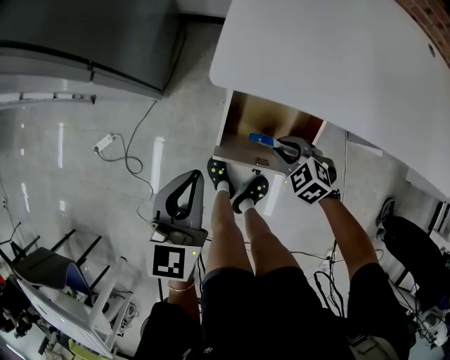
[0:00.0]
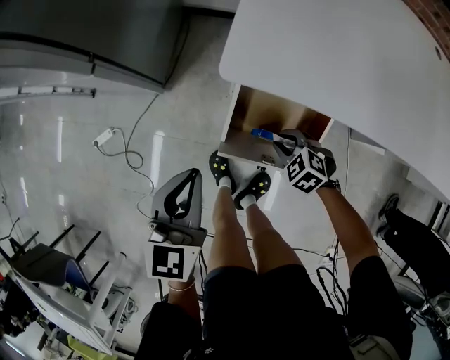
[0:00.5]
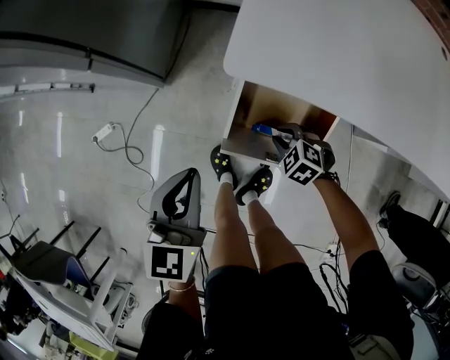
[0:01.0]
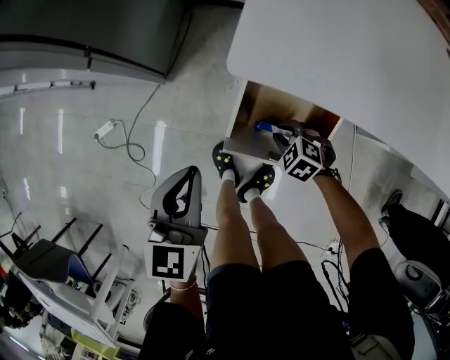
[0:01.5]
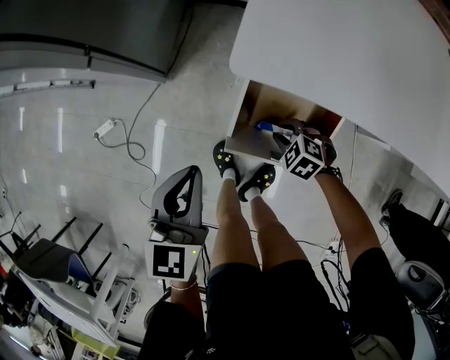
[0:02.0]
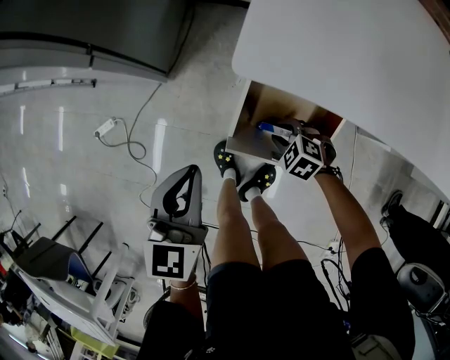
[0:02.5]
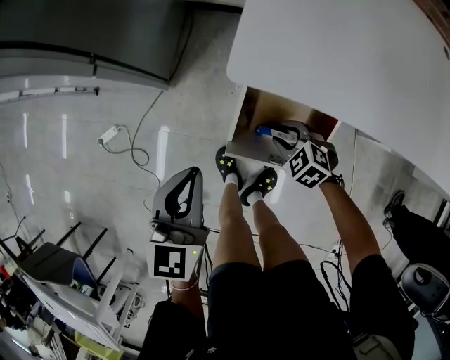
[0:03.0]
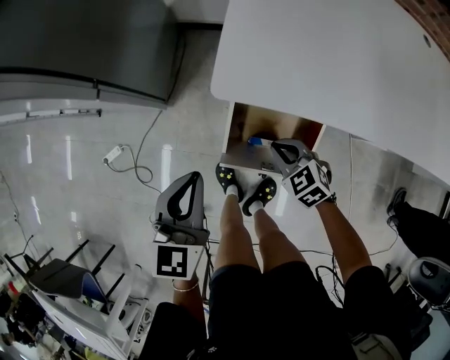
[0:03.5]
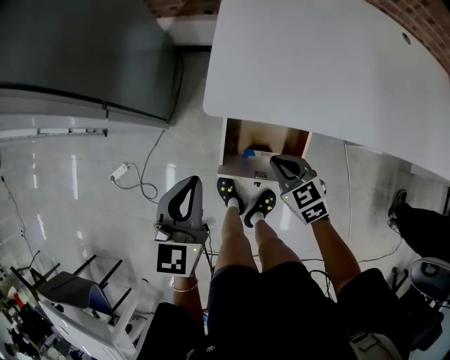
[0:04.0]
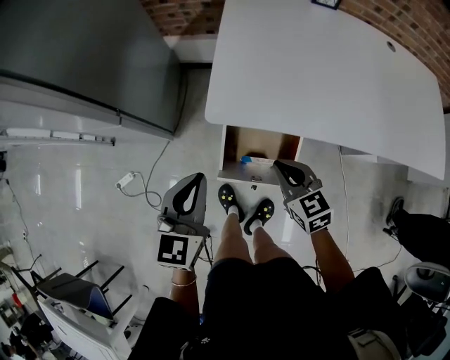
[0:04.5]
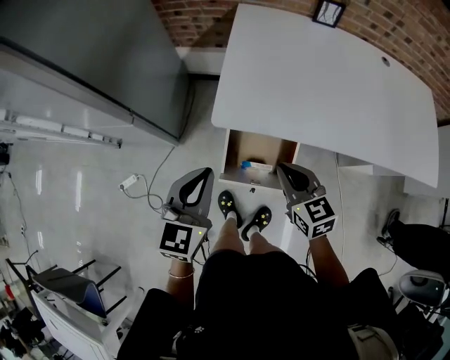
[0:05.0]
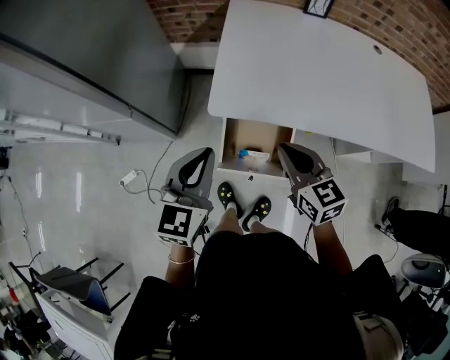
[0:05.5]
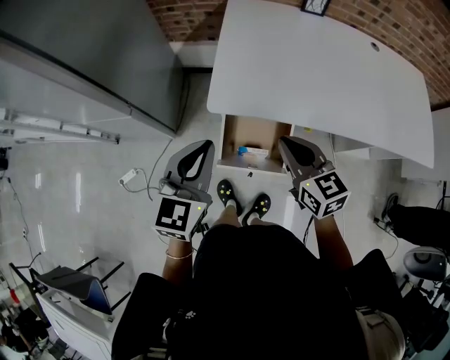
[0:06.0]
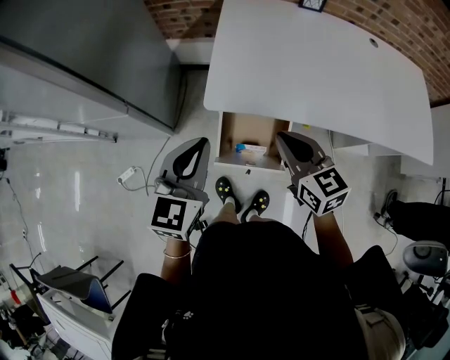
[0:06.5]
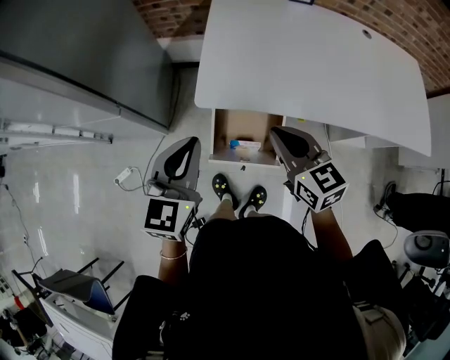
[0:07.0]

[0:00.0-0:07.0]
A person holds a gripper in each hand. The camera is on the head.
0:00.0 to 0:02.0: The right gripper goes approximately 10 cm downward.
0:02.0 to 0:03.5: The right gripper travels upward by roughly 10 cm, swivels approximately 30 degrees, and closes up; the left gripper shifts by approximately 5 cm.
0:03.5 to 0:05.0: The right gripper is displaced upward by approximately 25 cm, and changes its angle by some 30 degrees. Meanwhile the left gripper moves upward, about 15 cm.
0:05.0 to 0:07.0: The right gripper shifts some 10 cm upward.

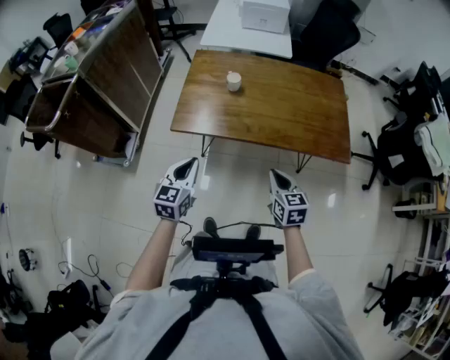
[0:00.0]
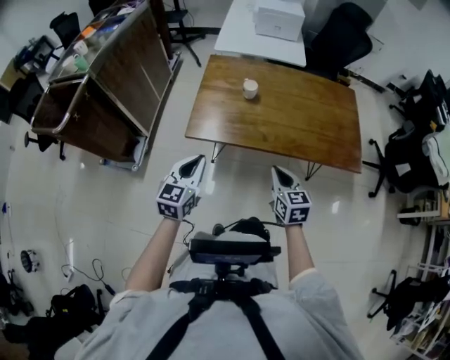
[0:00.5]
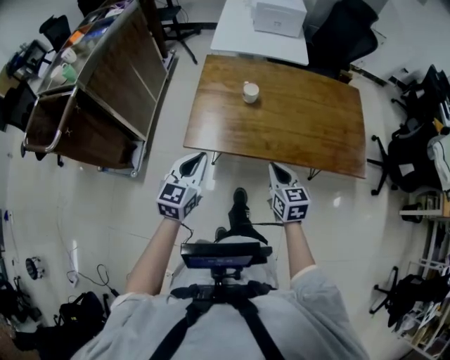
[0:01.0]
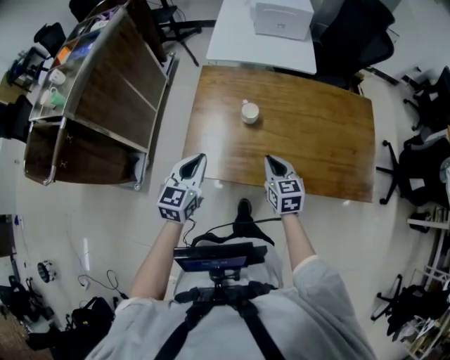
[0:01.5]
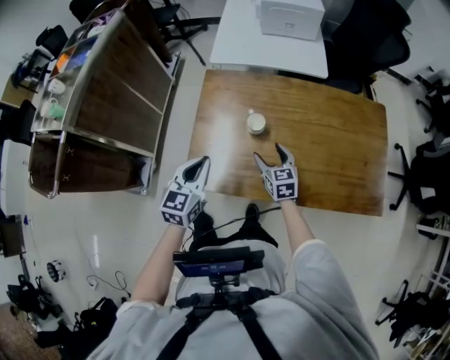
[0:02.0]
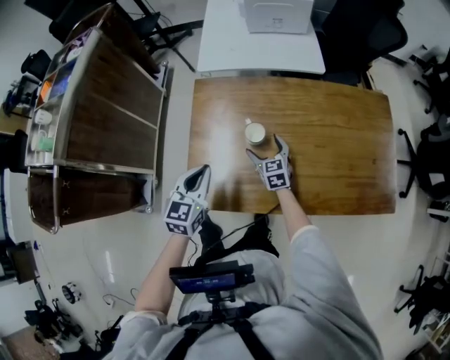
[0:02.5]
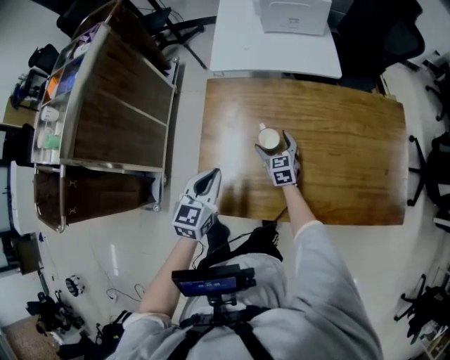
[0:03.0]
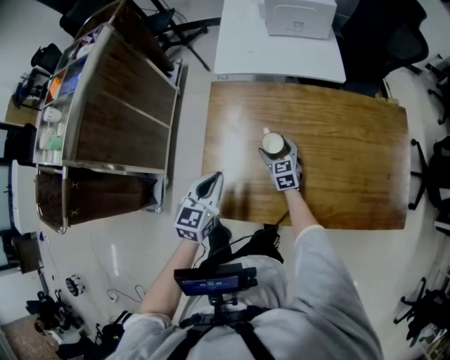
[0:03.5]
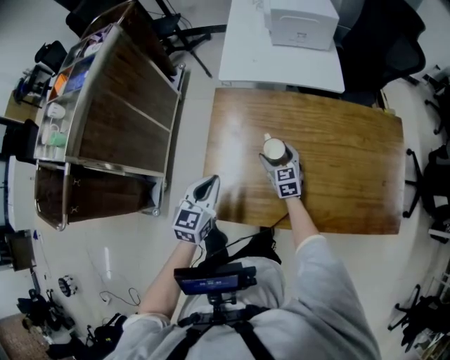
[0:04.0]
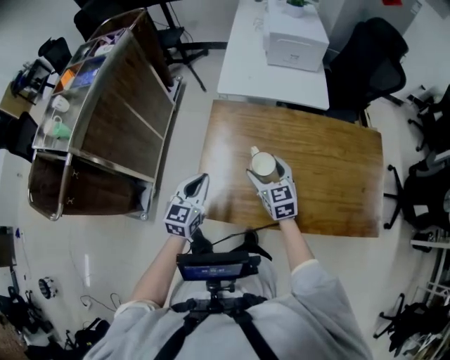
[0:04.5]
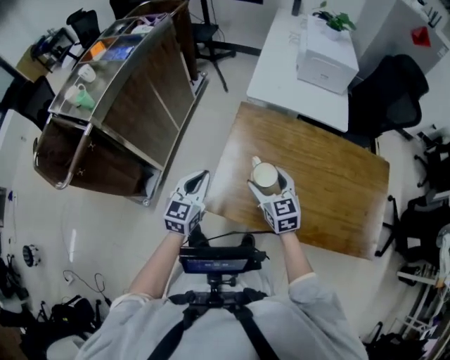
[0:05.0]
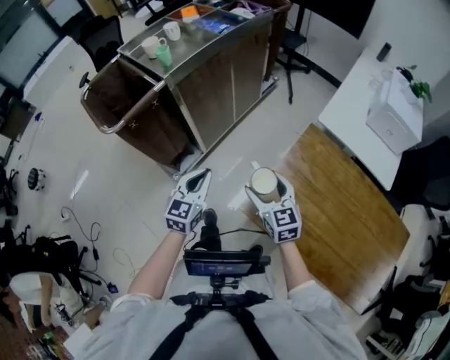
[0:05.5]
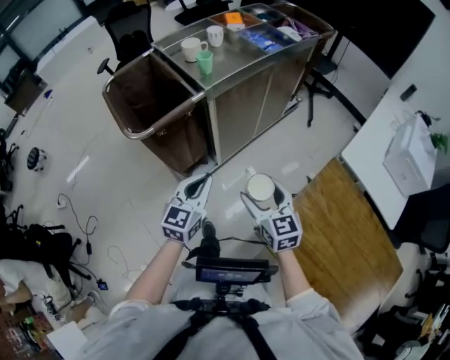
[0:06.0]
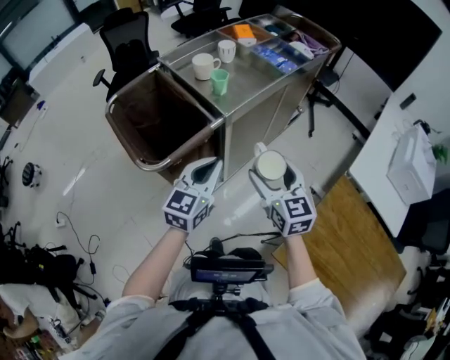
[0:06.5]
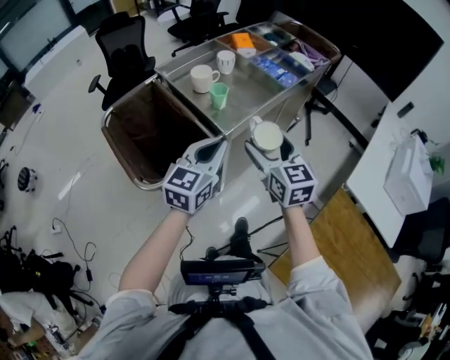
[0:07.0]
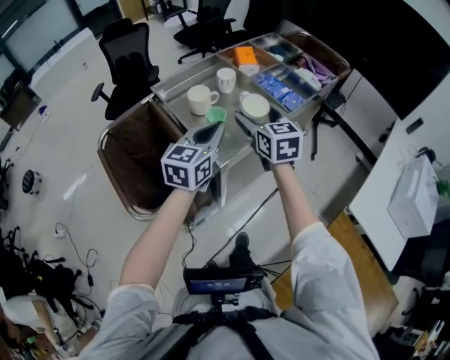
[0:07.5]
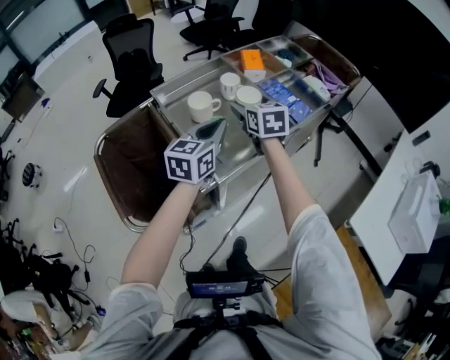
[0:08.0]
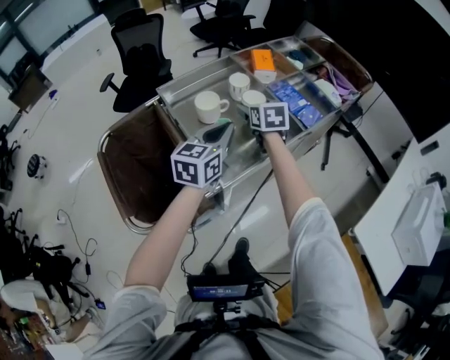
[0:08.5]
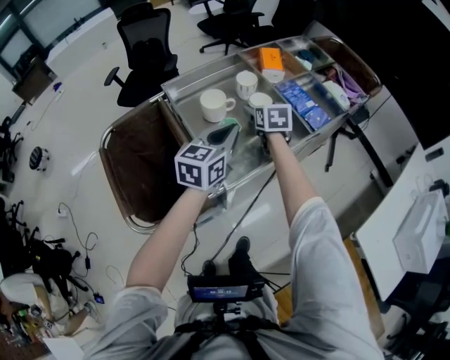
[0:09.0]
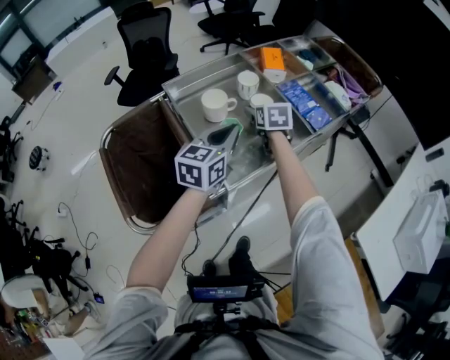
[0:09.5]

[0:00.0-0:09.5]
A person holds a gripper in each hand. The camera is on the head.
0:00.0 to 0:02.0: Both grippers move forward, about 35 cm. The right gripper opens up.
0:02.0 to 0:04.0: The right gripper moves forward and downward, about 15 cm. The left gripper goes approximately 5 cm forward.
0:04.0 to 0:05.5: The left gripper ends up roughly 30 cm from where it was, and rotates about 30 degrees. The right gripper moves roughly 40 cm, and rotates approximately 40 degrees.
0:05.5 to 0:07.5: Both grippers are carried forward and to the left, about 50 cm.
0:07.5 to 0:09.5: The left gripper travels forward by some 10 cm. Meanwhile the right gripper shifts some 20 cm forward and downward, and turns by some 20 degrees.

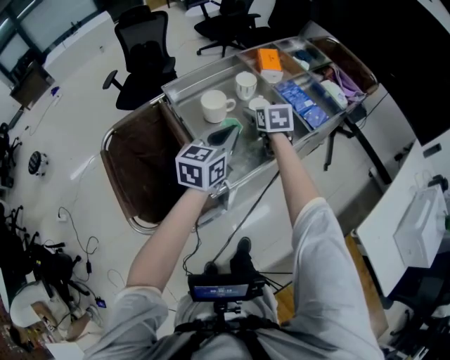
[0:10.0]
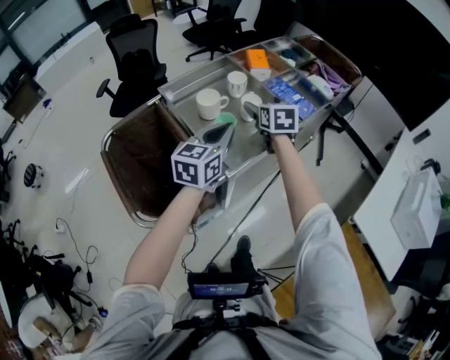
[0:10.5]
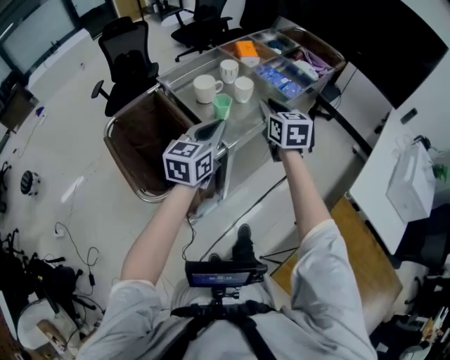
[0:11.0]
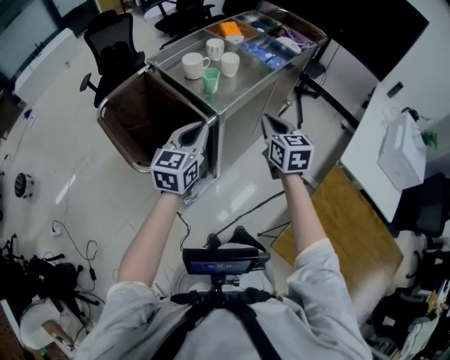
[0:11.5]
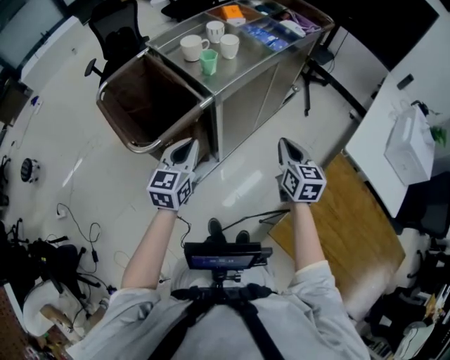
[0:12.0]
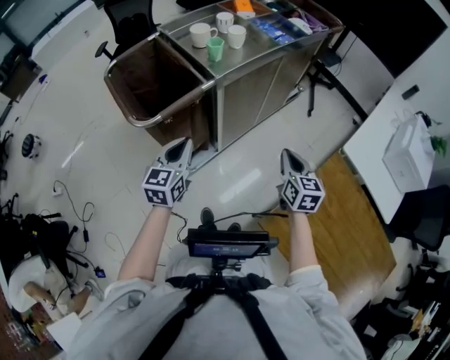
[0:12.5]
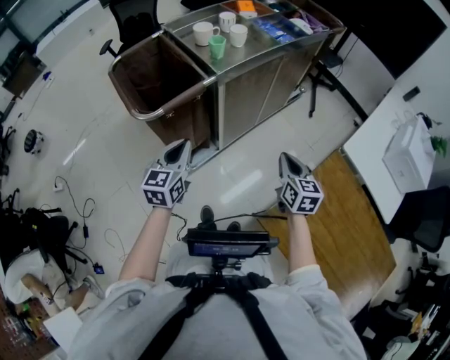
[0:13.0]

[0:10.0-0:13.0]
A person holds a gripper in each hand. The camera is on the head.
0:10.0 to 0:11.5: Both grippers move backward, approximately 30 cm. The right gripper closes its fingers.
0:11.5 to 0:13.0: The right gripper goes roughly 25 cm backward, to the right and downward; the left gripper heads backward and downward, covering some 20 cm.

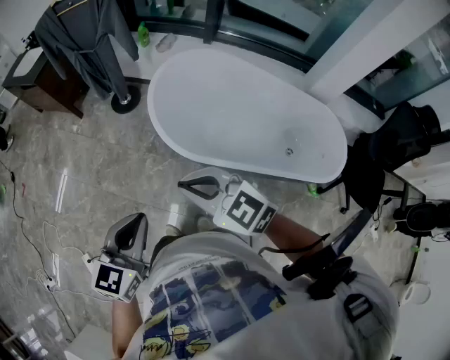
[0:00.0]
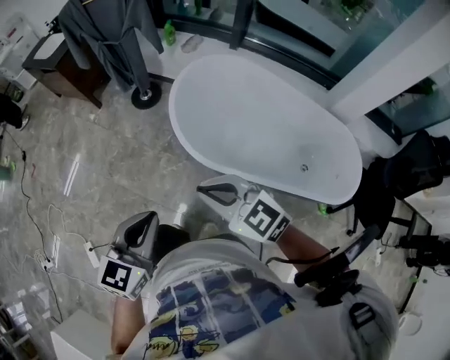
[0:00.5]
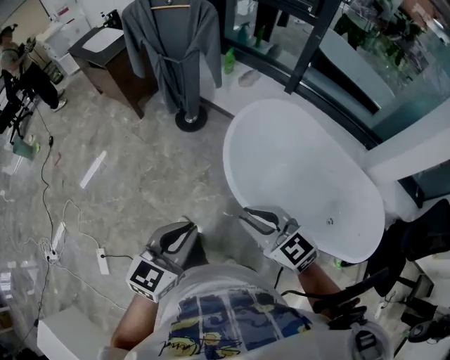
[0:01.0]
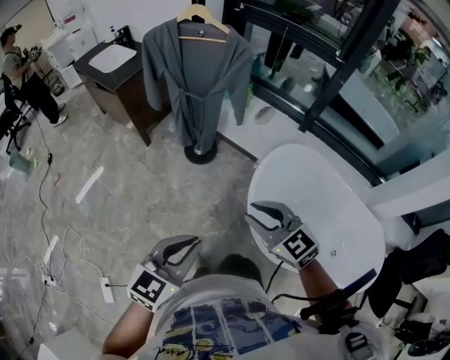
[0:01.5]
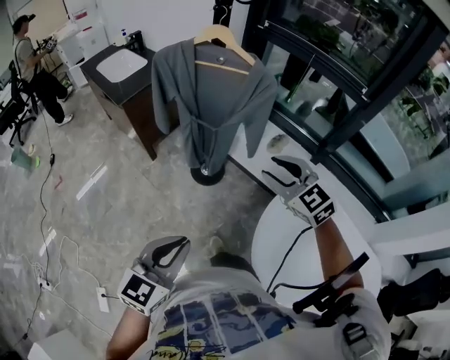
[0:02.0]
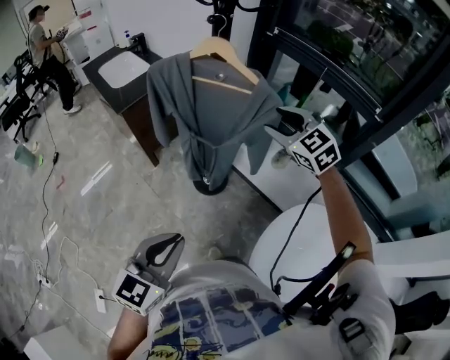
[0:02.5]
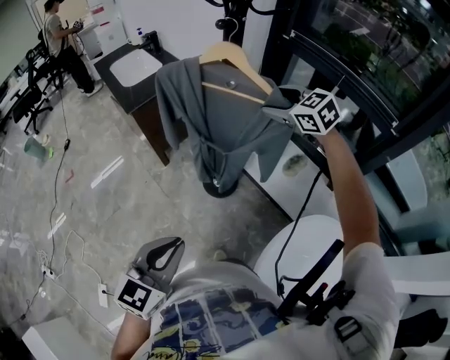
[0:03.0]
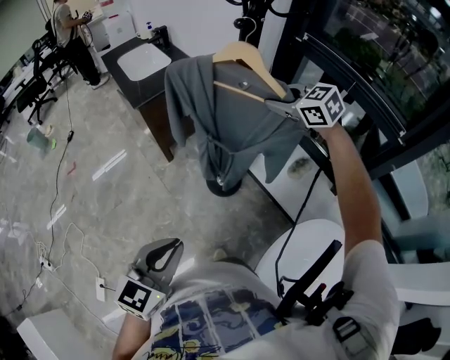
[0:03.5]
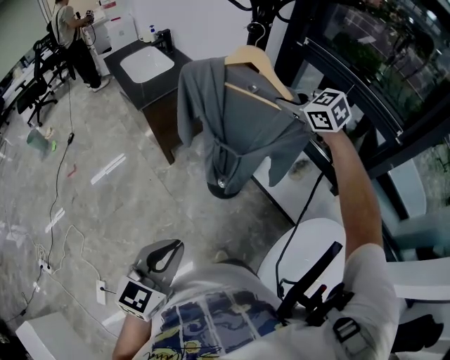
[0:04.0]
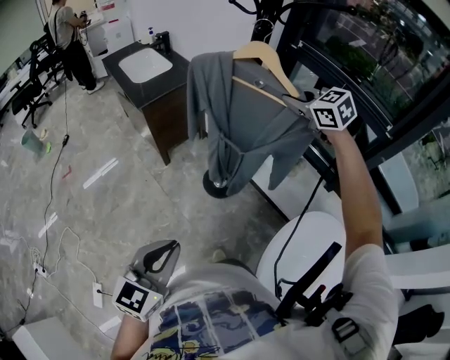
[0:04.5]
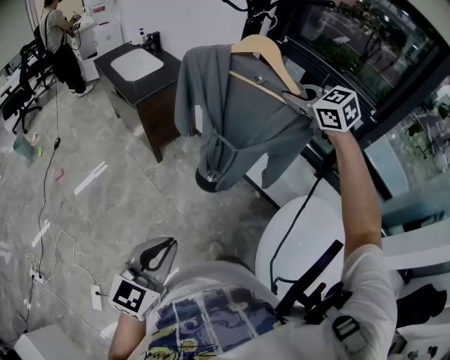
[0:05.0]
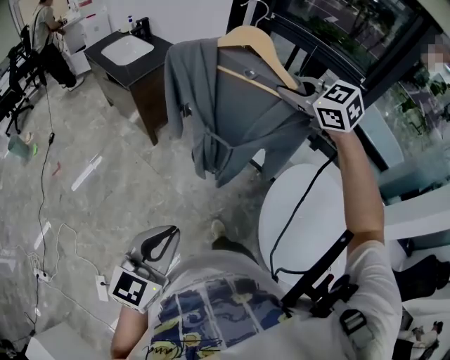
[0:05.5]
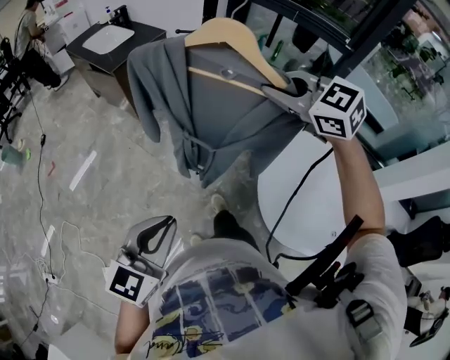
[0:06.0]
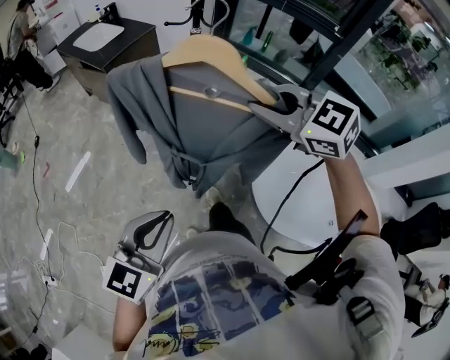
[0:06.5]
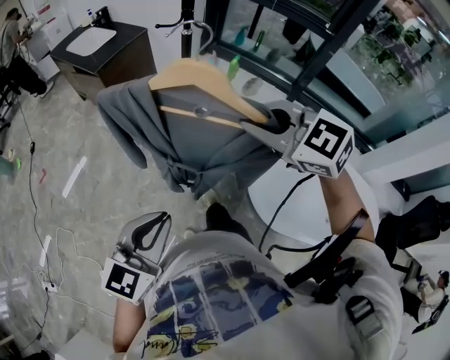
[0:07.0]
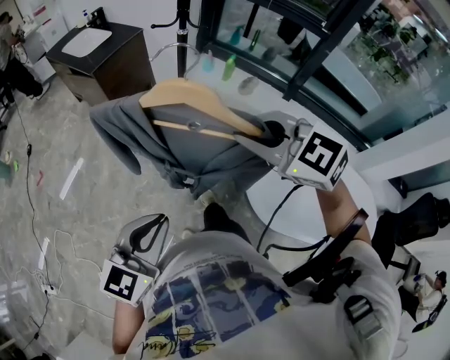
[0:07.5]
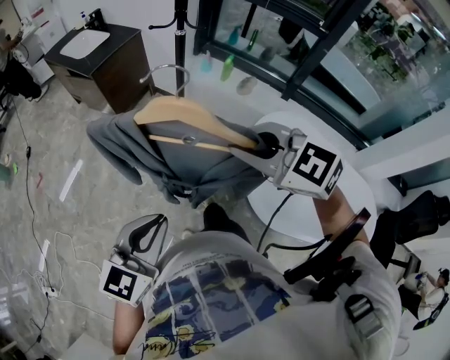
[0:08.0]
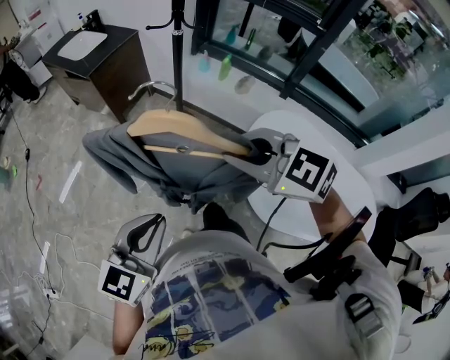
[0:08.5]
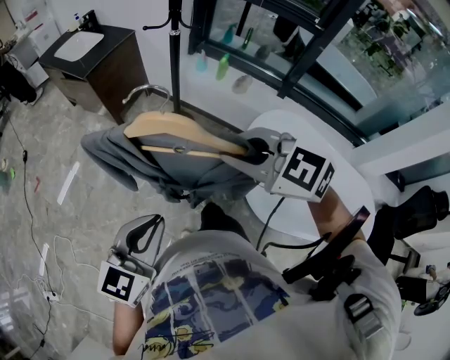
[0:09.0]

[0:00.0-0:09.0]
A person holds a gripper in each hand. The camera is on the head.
0:00.0 to 0:02.0: The pair of grippers is taken forward, some 50 cm. The right gripper opens up.
0:02.0 to 0:04.5: The left gripper moves forward and to the left, approximately 10 cm. Meanwhile the right gripper is displaced forward by roughly 30 cm, and closes.
0:04.5 to 0:07.0: The right gripper travels backward by approximately 50 cm. The left gripper travels backward by roughly 20 cm.
0:07.0 to 0:09.0: The right gripper ends up roughly 5 cm from where it was.
